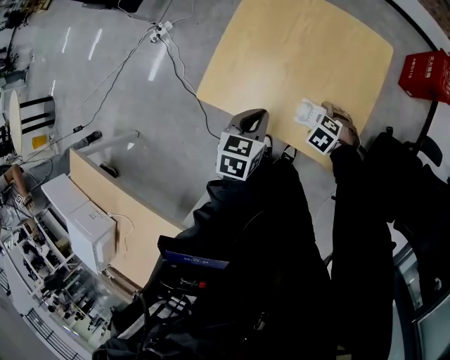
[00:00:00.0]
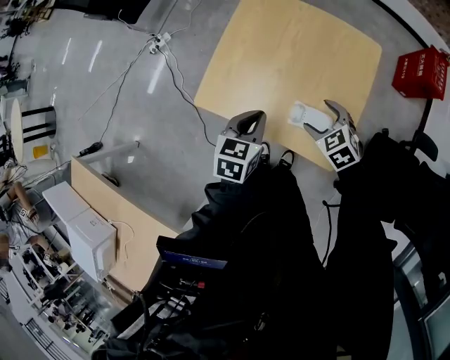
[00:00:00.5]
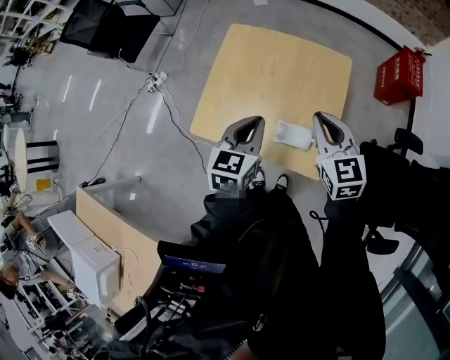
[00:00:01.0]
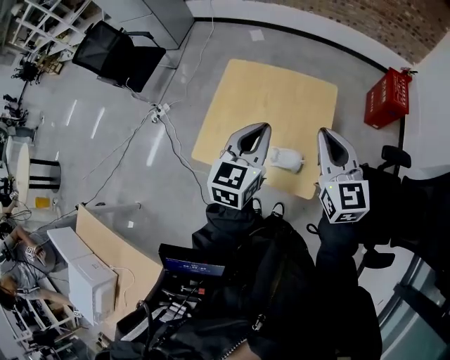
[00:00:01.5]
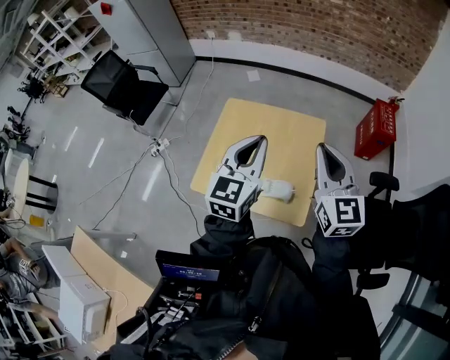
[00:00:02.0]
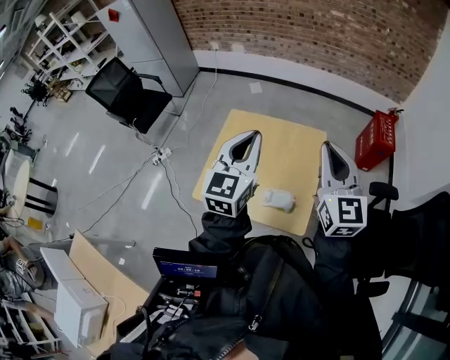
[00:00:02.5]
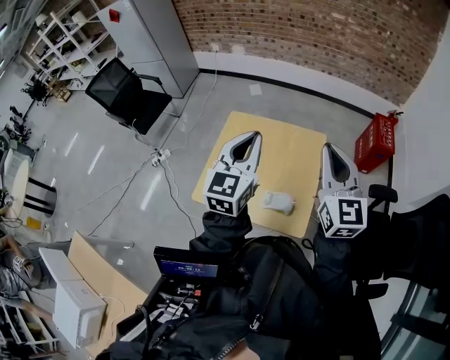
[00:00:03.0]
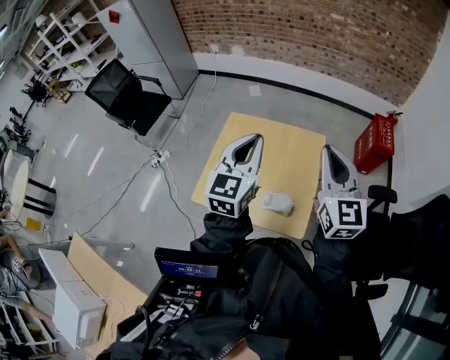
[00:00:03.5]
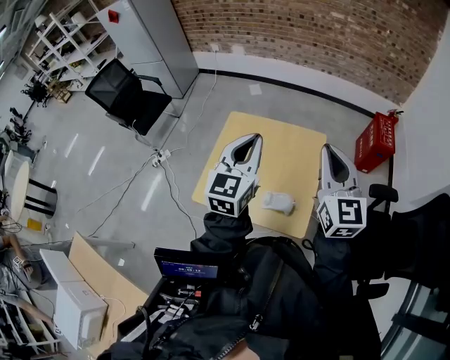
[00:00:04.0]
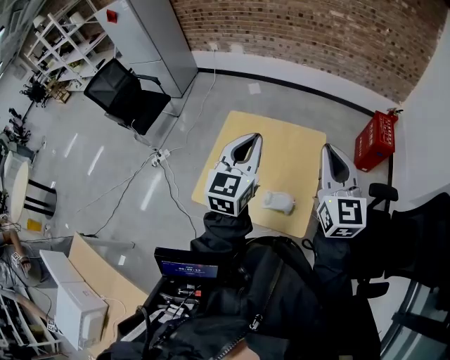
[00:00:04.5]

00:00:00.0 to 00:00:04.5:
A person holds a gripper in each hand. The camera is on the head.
00:00:00.0 to 00:00:02.0: The left gripper goes about 35 cm upward, and tilts its fingers roughly 40 degrees upward. Meanwhile the right gripper shifts some 50 cm upward, tips its fingers upward by roughly 80 degrees, and closes.
00:00:02.0 to 00:00:04.5: The grippers stay close to where they were, moving slightly.

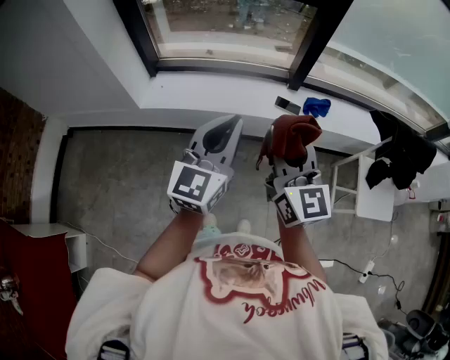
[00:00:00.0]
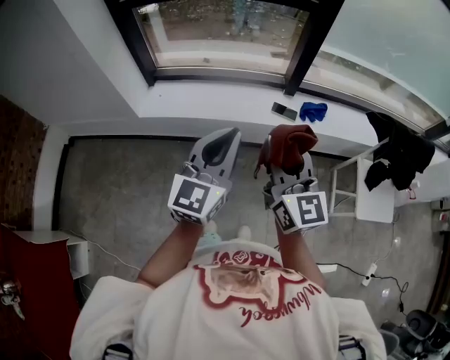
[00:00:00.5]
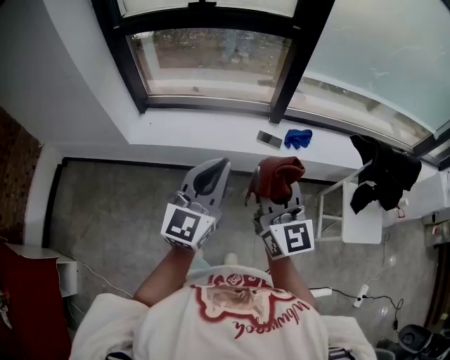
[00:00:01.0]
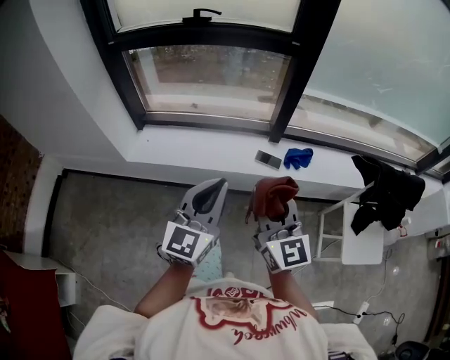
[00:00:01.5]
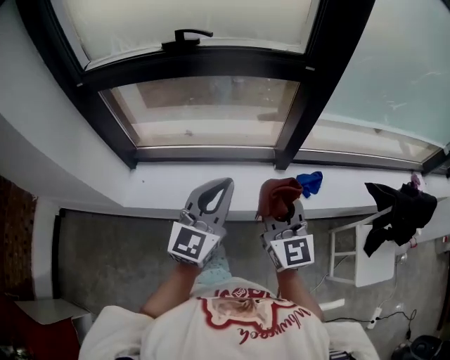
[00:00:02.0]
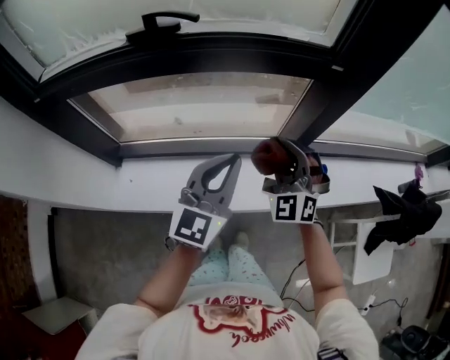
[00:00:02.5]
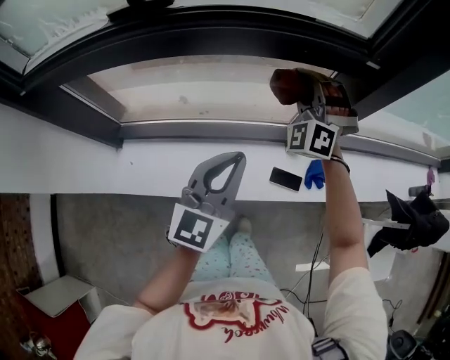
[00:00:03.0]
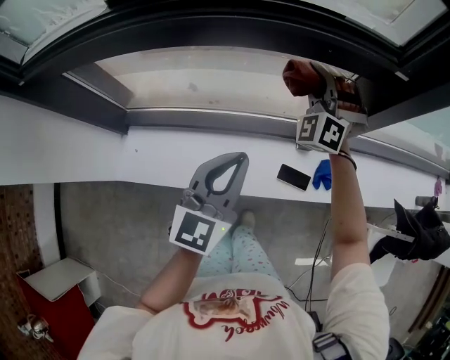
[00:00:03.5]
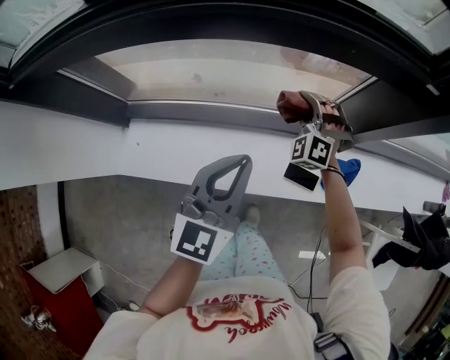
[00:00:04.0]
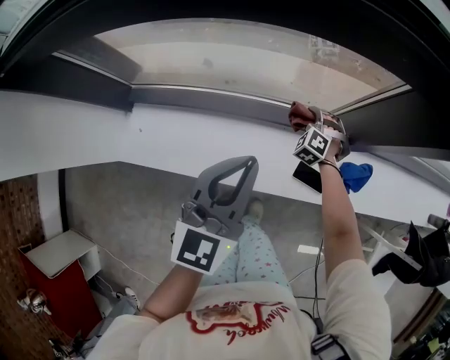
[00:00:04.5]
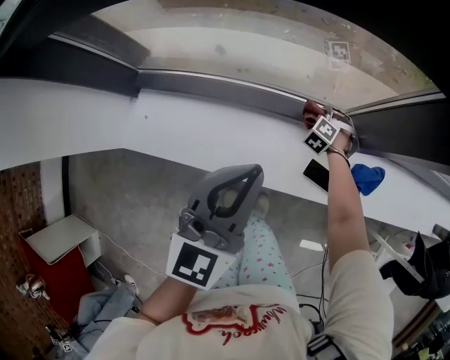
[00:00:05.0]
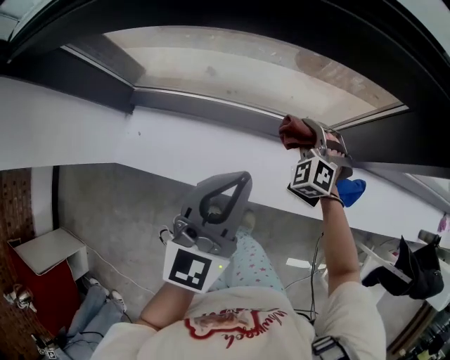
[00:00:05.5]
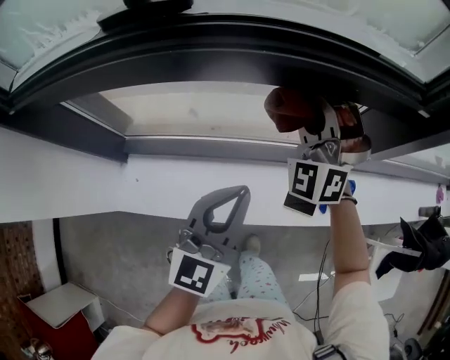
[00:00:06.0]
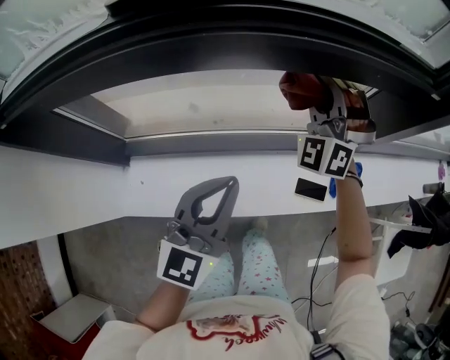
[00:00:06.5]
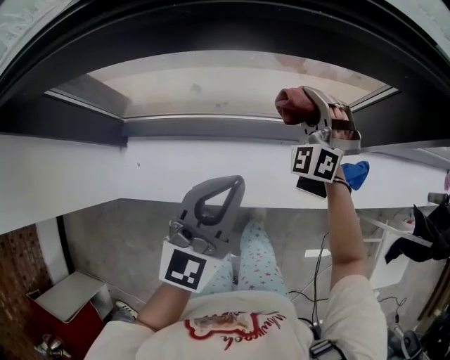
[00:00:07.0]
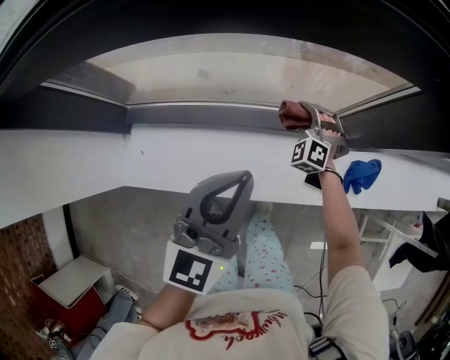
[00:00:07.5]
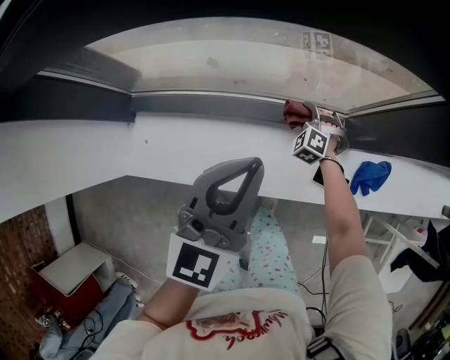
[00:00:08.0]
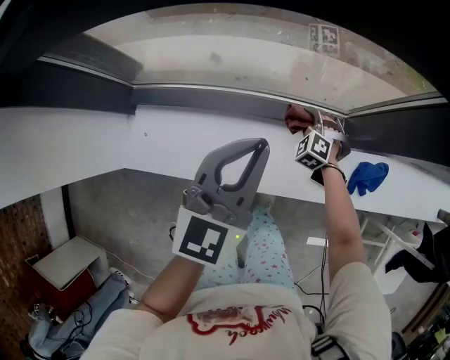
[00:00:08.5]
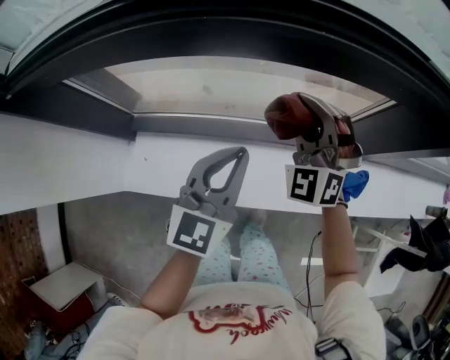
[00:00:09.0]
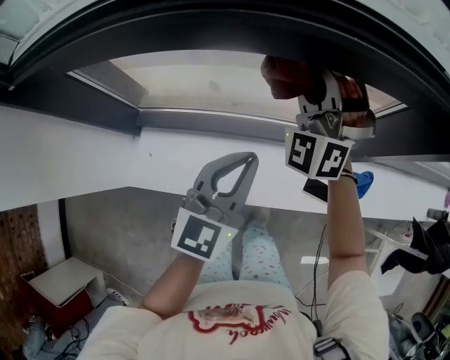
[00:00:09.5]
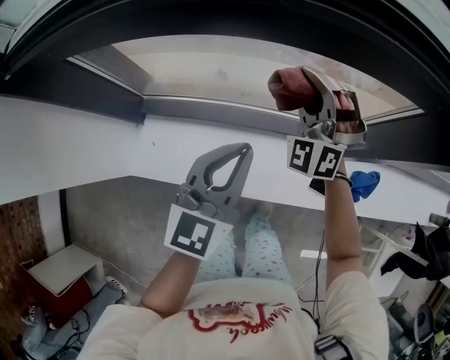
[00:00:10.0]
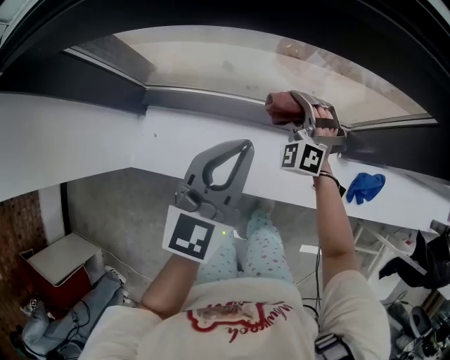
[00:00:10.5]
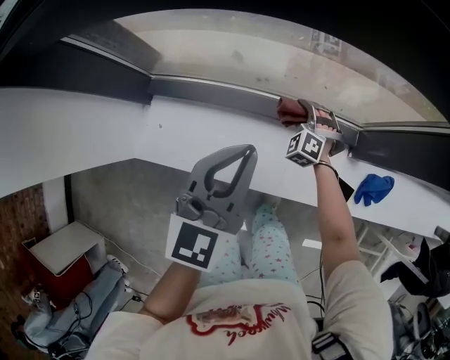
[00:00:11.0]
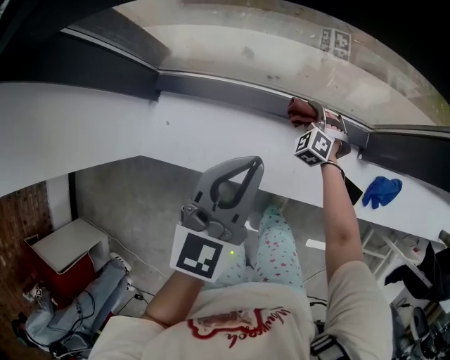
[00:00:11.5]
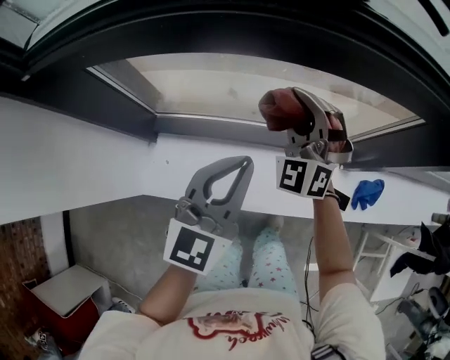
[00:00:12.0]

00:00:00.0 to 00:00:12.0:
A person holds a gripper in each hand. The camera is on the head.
00:00:00.0 to 00:00:02.0: Both grippers travel together forward, about 25 cm.
00:00:02.0 to 00:00:04.0: The left gripper is displaced forward and downward by some 25 cm; the right gripper is displaced forward and downward by approximately 50 cm, and rolls counterclockwise, seen from behind, by about 60 degrees.
00:00:04.0 to 00:00:06.0: The right gripper shifts some 20 cm upward, and swivels approximately 20 degrees.
00:00:06.0 to 00:00:08.0: The right gripper goes some 50 cm downward, and points its fingers roughly 40 degrees further downward. Meanwhile the left gripper is displaced downward by about 5 cm.
00:00:08.0 to 00:00:10.0: The right gripper moves upward, roughly 35 cm, and angles its fingers upward, by approximately 40 degrees; the left gripper moves to the left, about 5 cm.
00:00:10.0 to 00:00:12.0: The grippers both shift to the left by approximately 10 cm. The right gripper travels downward and back again, roughly 35 cm each way; the left gripper goes downward and returns, approximately 5 cm each way.

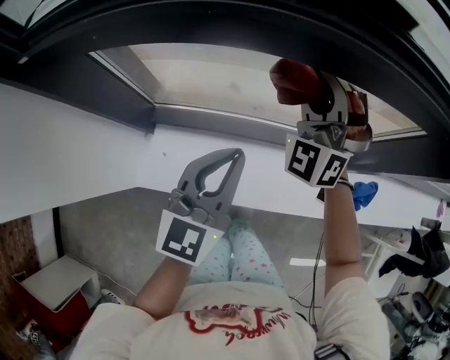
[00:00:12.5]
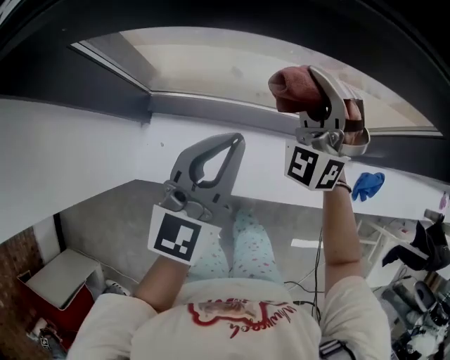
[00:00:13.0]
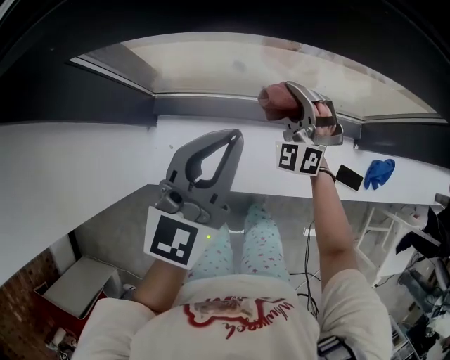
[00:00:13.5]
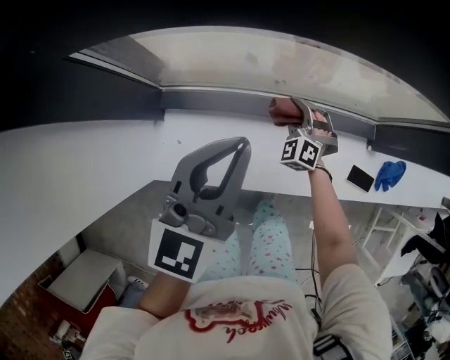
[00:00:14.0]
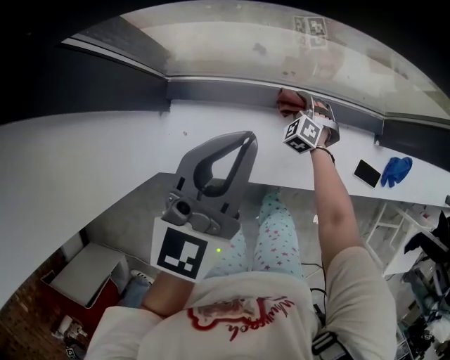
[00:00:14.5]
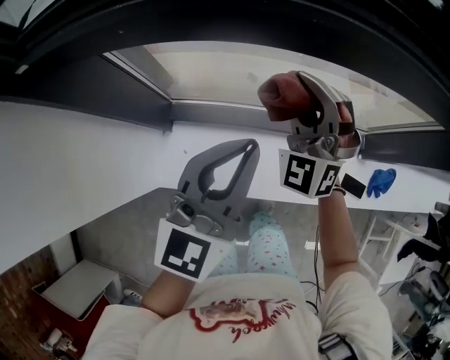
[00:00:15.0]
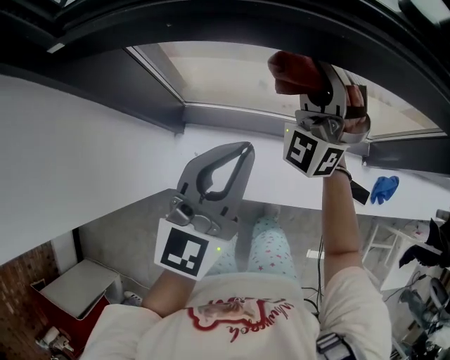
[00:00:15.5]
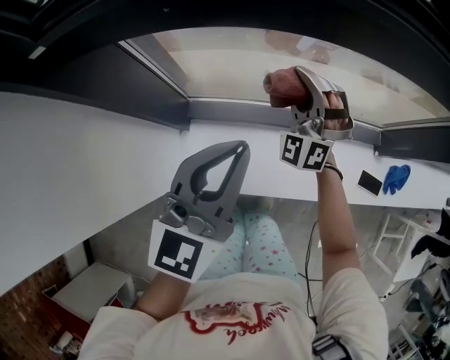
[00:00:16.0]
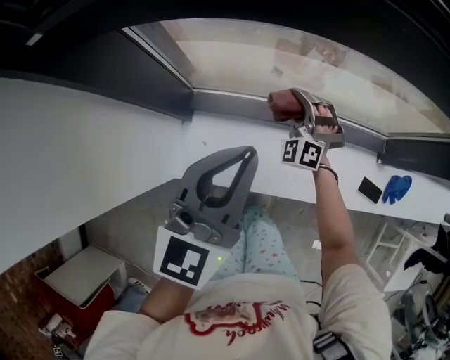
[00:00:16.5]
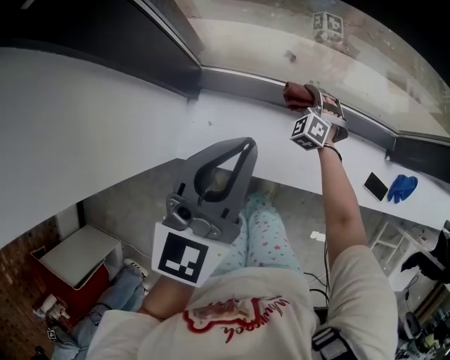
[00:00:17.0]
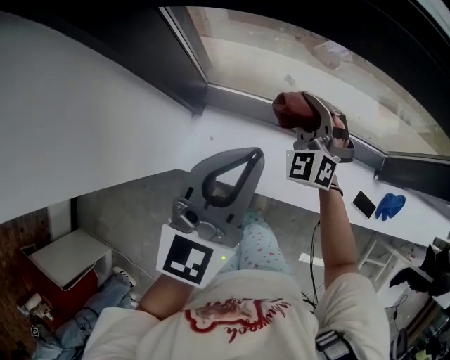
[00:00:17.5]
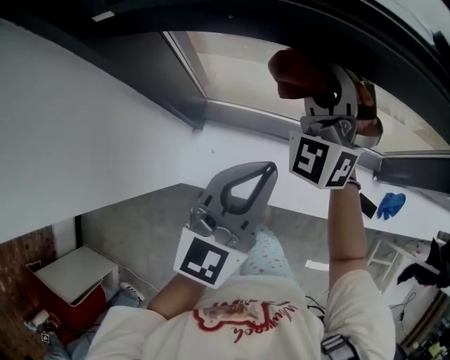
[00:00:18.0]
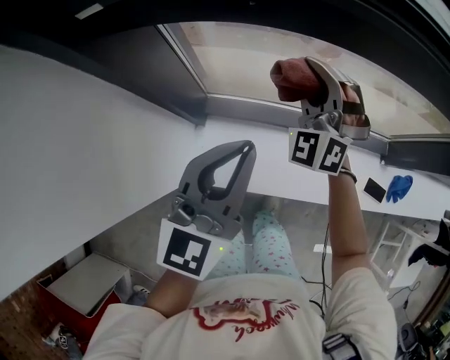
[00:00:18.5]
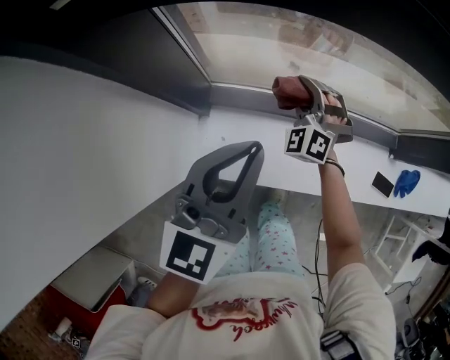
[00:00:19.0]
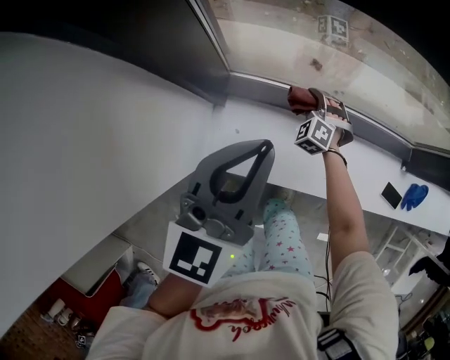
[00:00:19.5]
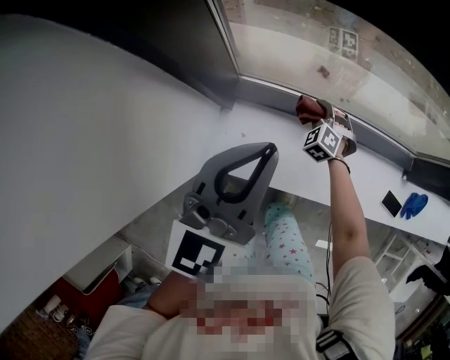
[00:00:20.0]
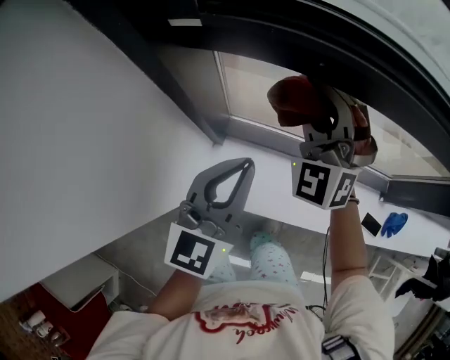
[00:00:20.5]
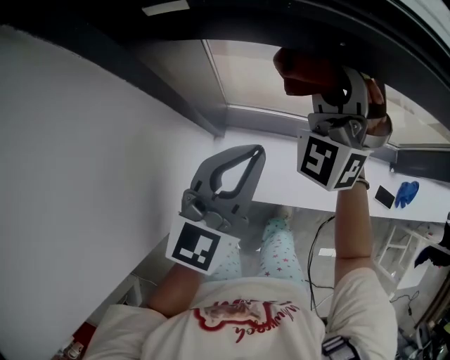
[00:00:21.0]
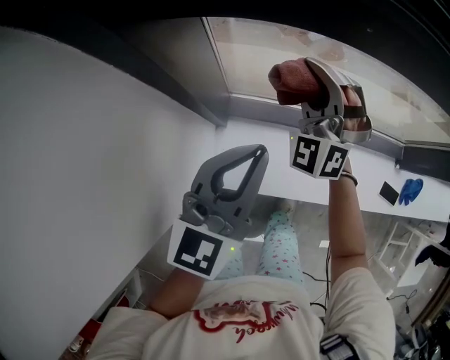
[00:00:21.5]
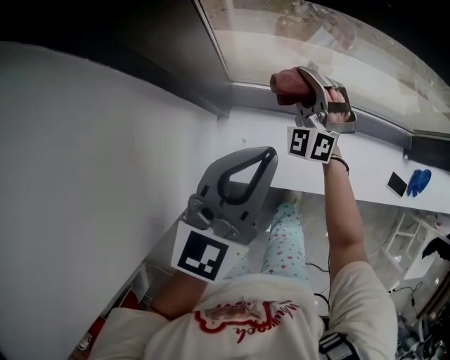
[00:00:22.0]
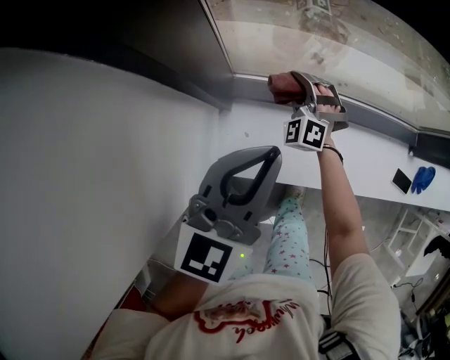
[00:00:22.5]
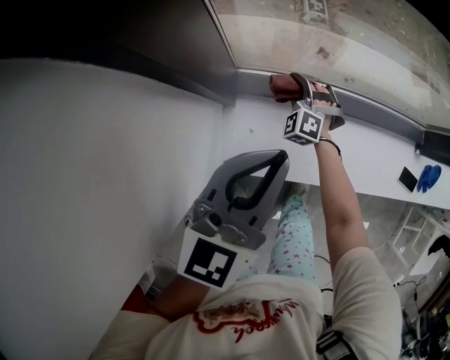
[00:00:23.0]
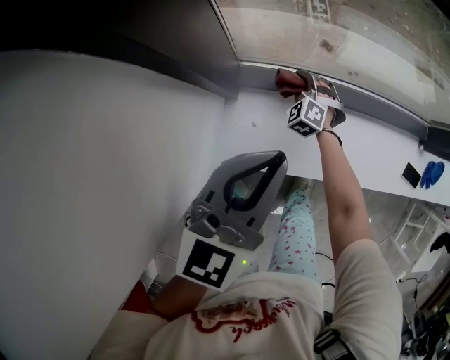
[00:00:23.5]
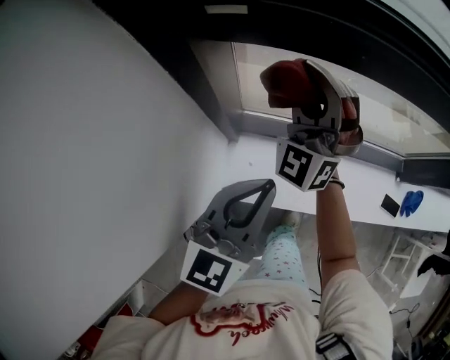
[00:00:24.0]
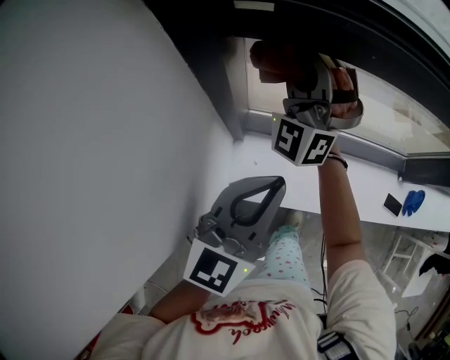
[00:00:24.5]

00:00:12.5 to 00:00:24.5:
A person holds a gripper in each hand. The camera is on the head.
00:00:12.5 to 00:00:14.5: The right gripper is displaced downward by approximately 50 cm, and points its fingers some 50 degrees further downward. The left gripper moves to the left, roughly 5 cm.
00:00:14.5 to 00:00:16.5: The right gripper travels upward and to the left by about 20 cm, and swivels roughly 30 degrees; the left gripper moves about 10 cm.
00:00:16.5 to 00:00:18.5: The right gripper goes up and down, roughly 40 cm each way, reversing 2 times. The left gripper shifts about 5 cm to the left.
00:00:18.5 to 00:00:20.5: Both grippers move to the left, roughly 5 cm. The right gripper travels downward and back again, approximately 35 cm each way.
00:00:20.5 to 00:00:22.5: The left gripper heads downward, covering some 10 cm; the right gripper moves downward, some 35 cm, and swivels approximately 30 degrees.
00:00:22.5 to 00:00:24.5: The left gripper shifts about 10 cm upward; the right gripper shifts roughly 35 cm upward, and tips its fingers upward by some 40 degrees.
